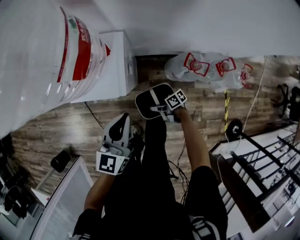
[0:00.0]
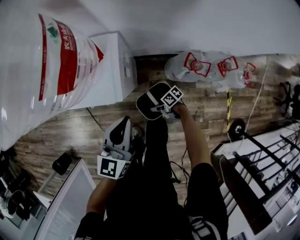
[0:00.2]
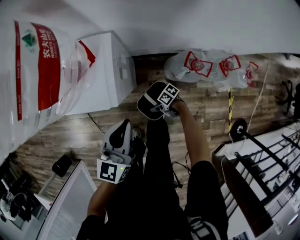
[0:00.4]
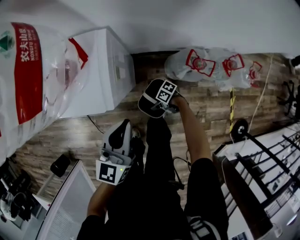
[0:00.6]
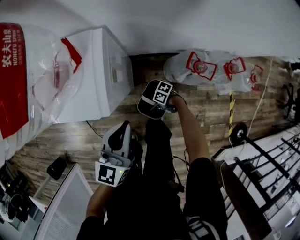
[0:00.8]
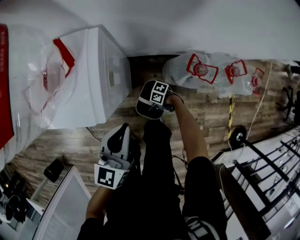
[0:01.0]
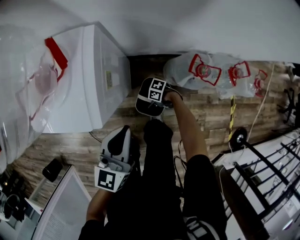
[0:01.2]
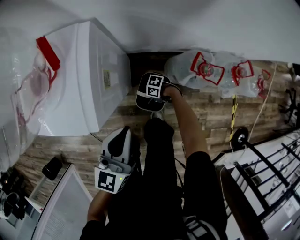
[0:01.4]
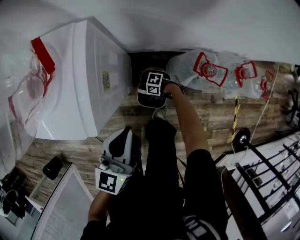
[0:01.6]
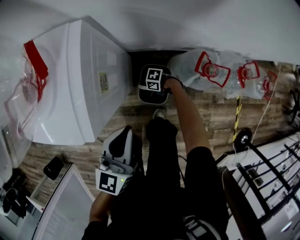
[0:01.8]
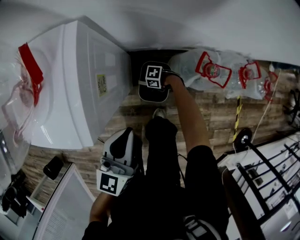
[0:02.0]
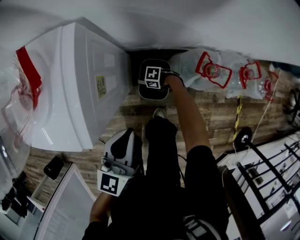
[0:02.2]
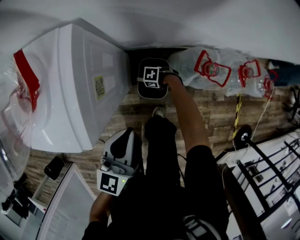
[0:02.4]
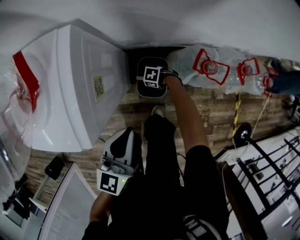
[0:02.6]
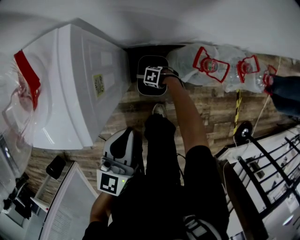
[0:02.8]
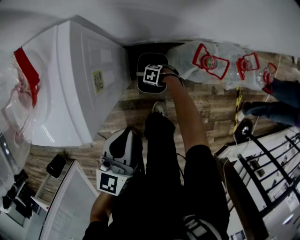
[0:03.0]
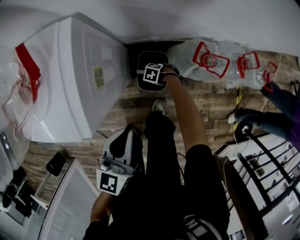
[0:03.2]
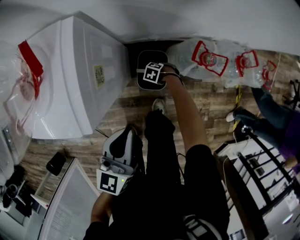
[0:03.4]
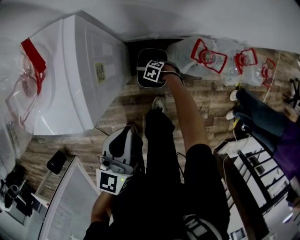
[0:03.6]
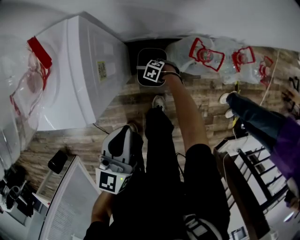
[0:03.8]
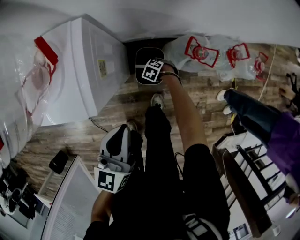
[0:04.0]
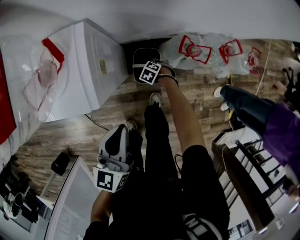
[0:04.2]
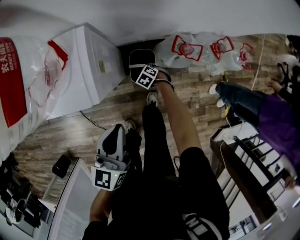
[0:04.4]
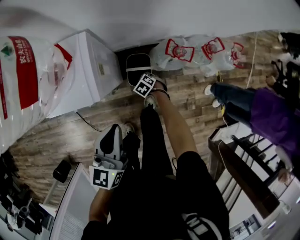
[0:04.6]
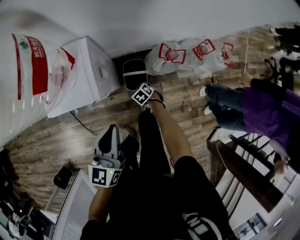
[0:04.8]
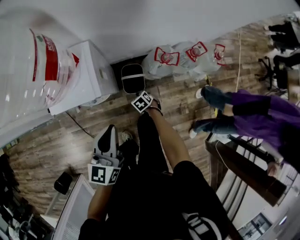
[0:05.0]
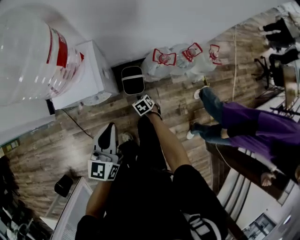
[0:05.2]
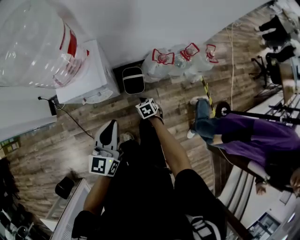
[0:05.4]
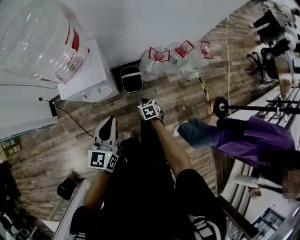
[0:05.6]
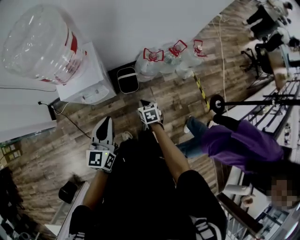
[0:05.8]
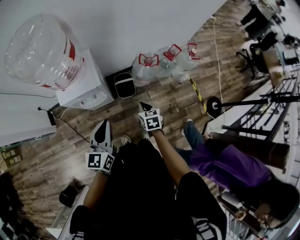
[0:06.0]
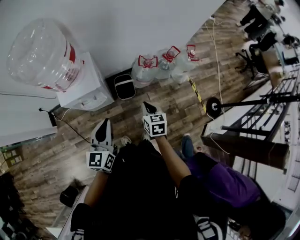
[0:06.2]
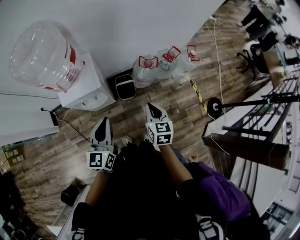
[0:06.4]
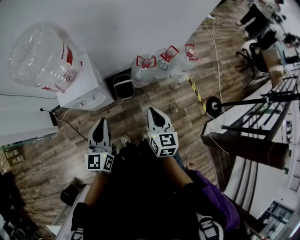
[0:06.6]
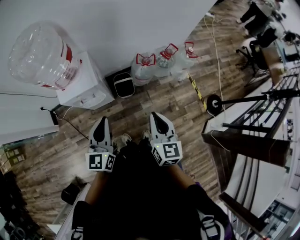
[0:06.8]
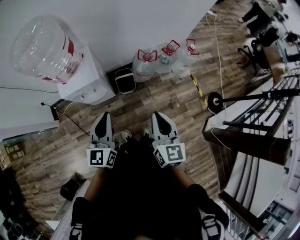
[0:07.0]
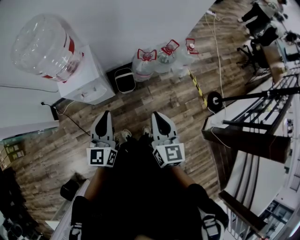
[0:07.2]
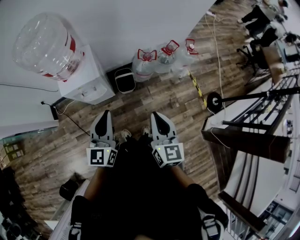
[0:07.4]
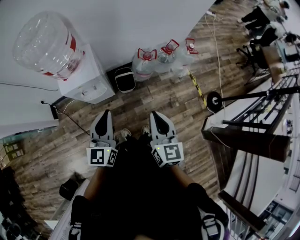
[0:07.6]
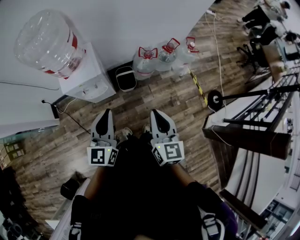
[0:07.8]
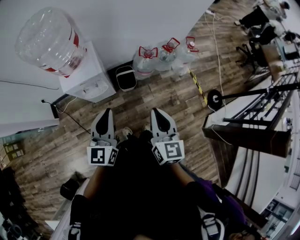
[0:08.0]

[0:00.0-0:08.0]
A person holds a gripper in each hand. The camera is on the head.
0:00.0 to 0:01.6: The left gripper goes about 20 cm downward.
0:03.2 to 0:04.8: The left gripper is displaced upward by approximately 20 cm.
0:04.8 to 0:06.4: The left gripper travels upward by approximately 15 cm.
0:06.4 to 0:08.0: The left gripper moves about 5 cm.

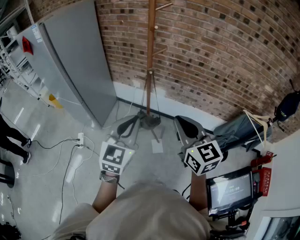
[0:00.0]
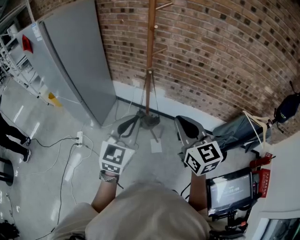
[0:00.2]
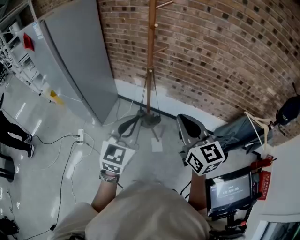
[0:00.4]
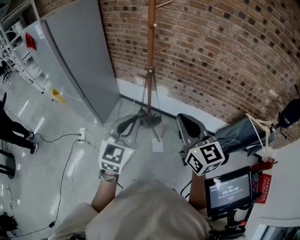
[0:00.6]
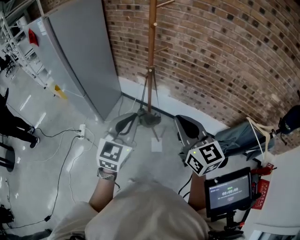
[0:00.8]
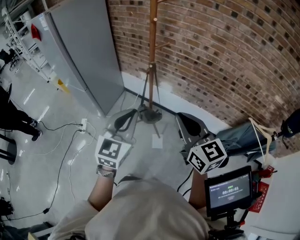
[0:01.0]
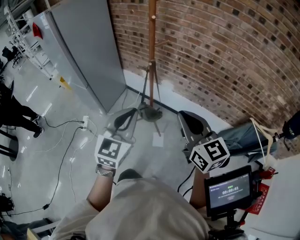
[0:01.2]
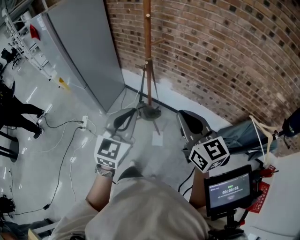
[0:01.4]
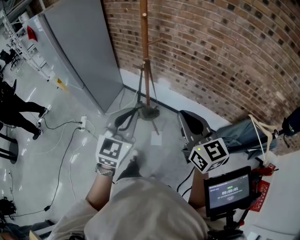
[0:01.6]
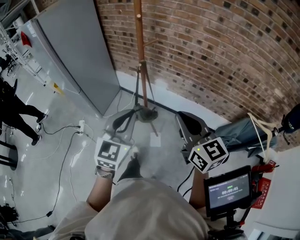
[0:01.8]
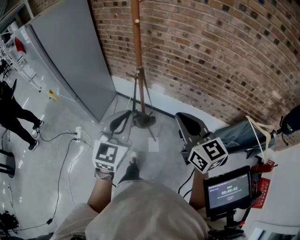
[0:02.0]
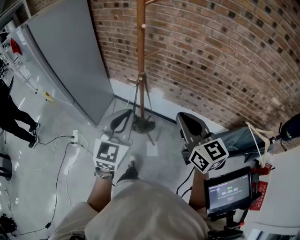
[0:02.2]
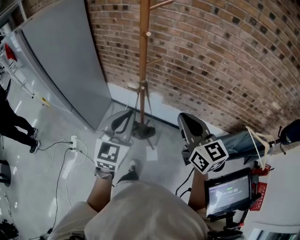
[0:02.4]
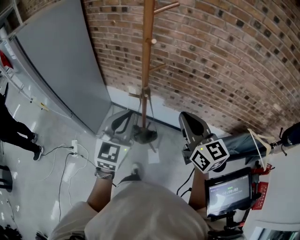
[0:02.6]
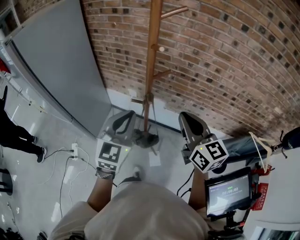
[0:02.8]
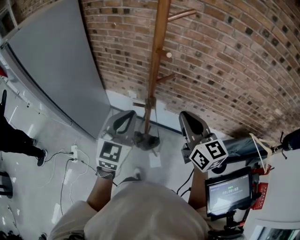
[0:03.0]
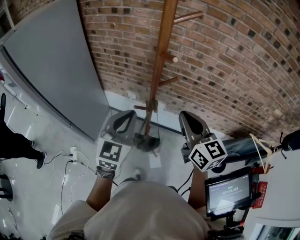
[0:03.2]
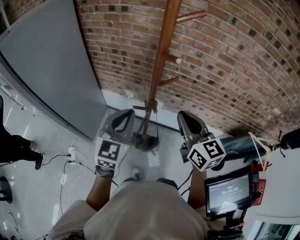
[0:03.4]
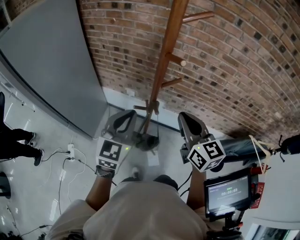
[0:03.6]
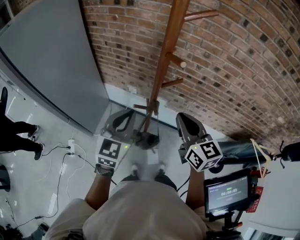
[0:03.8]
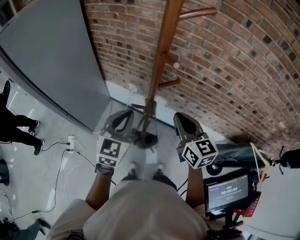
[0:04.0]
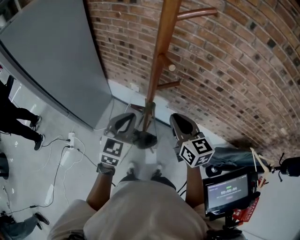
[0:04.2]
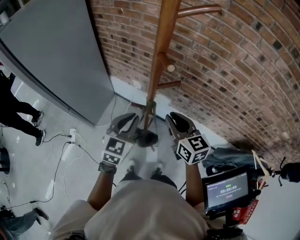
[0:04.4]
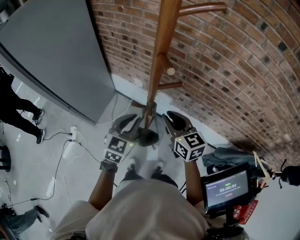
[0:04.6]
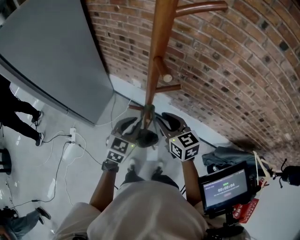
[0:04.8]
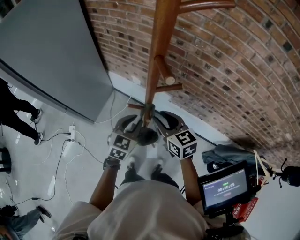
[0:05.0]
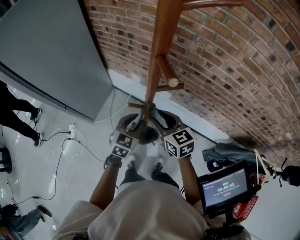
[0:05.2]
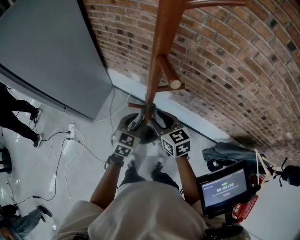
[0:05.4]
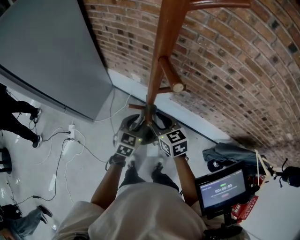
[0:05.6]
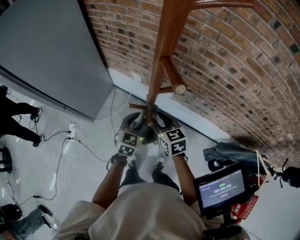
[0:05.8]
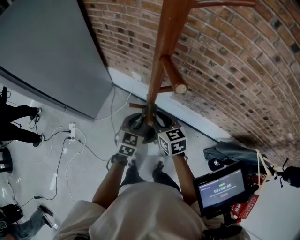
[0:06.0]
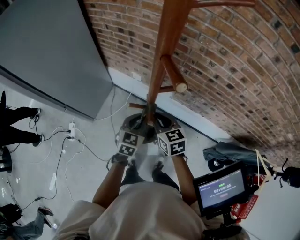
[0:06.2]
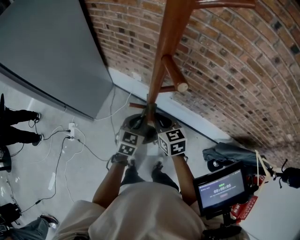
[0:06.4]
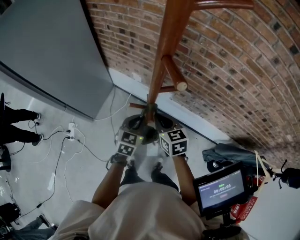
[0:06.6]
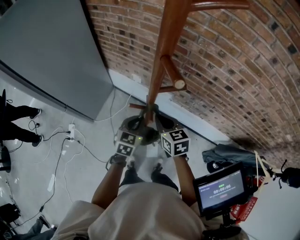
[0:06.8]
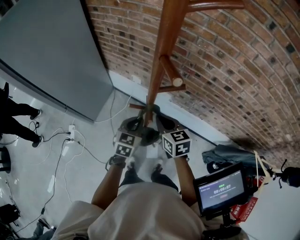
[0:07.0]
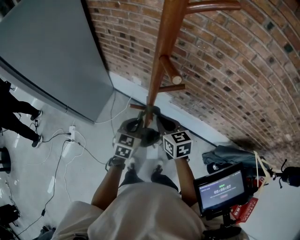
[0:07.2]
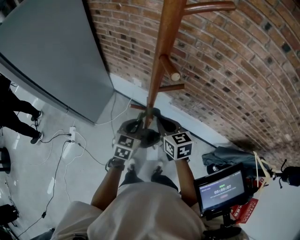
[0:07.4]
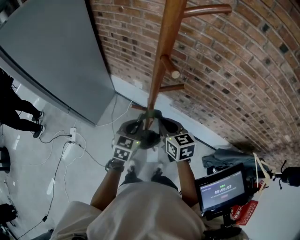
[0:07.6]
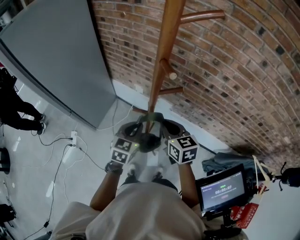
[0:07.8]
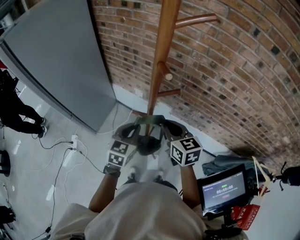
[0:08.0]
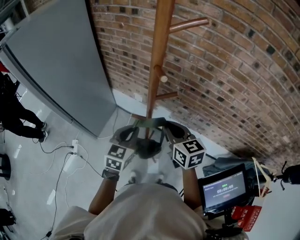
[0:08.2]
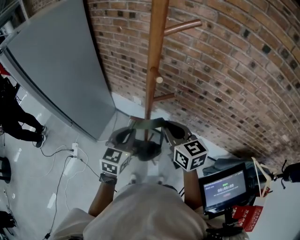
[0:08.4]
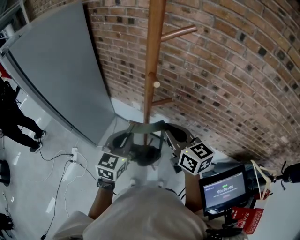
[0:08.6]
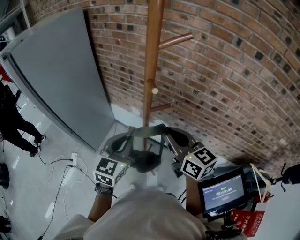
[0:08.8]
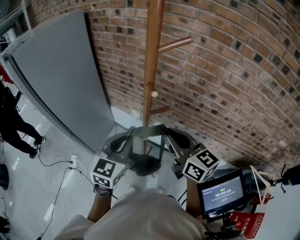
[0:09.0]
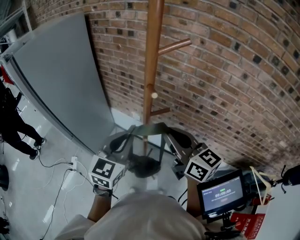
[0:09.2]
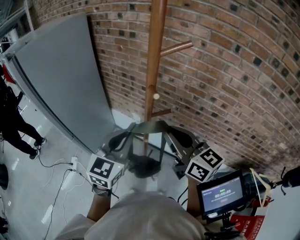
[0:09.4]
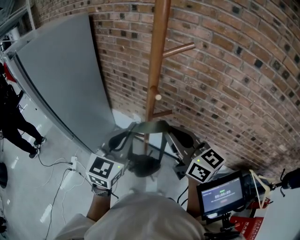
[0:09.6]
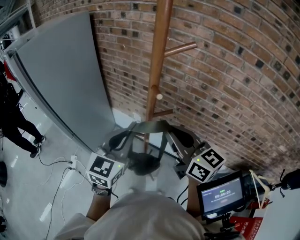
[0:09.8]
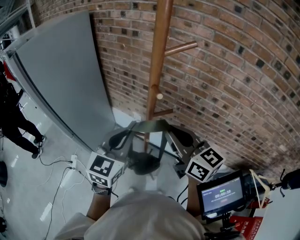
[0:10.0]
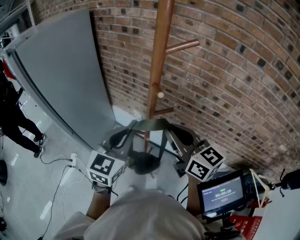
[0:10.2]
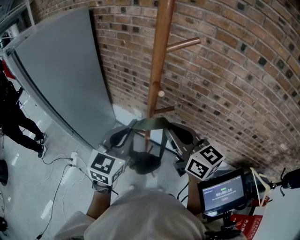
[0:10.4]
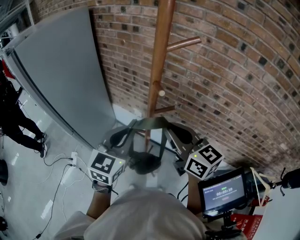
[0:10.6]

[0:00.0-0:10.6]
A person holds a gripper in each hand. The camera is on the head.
0:00.0 to 0:01.6: The two grippers go about 10 cm to the right.
0:01.6 to 0:03.0: The grippers both shift forward by roughly 25 cm.
0:03.0 to 0:04.6: The grippers both shift downward and forward by about 15 cm. The right gripper turns by some 20 degrees.
0:04.6 to 0:06.0: The two grippers go about 10 cm downward.
0:06.0 to 0:07.6: The right gripper changes place by some 5 cm, and closes up.
0:07.6 to 0:09.0: Both grippers travel together upward, about 20 cm. The right gripper changes its angle by approximately 30 degrees.
0:09.0 to 0:10.6: The grippers make only small movements.

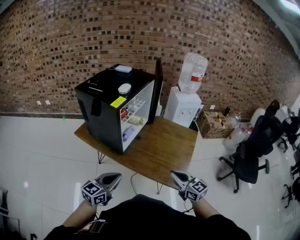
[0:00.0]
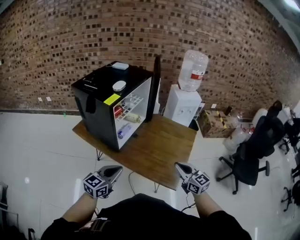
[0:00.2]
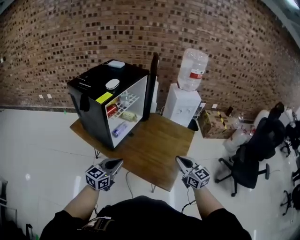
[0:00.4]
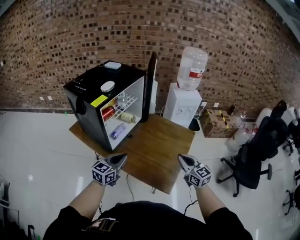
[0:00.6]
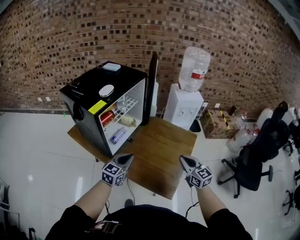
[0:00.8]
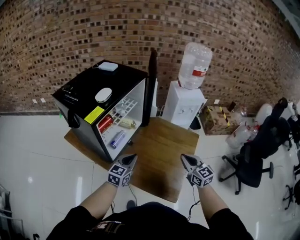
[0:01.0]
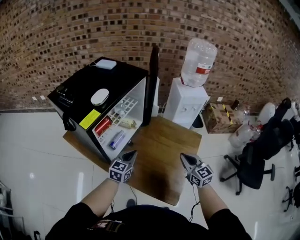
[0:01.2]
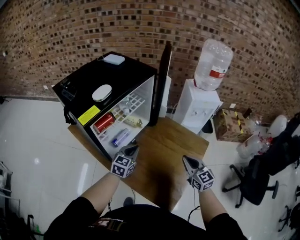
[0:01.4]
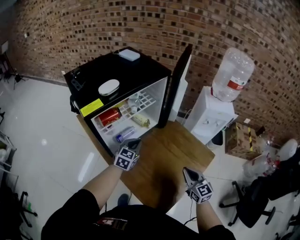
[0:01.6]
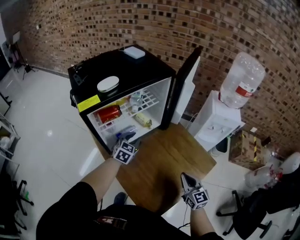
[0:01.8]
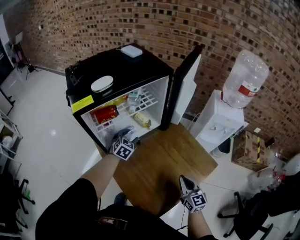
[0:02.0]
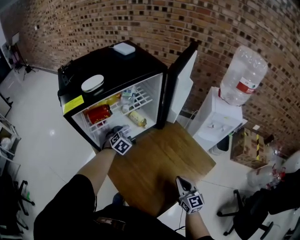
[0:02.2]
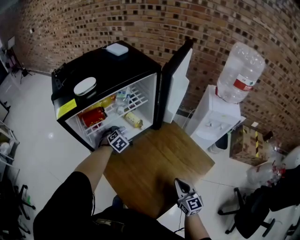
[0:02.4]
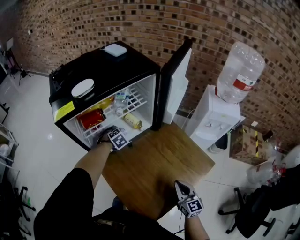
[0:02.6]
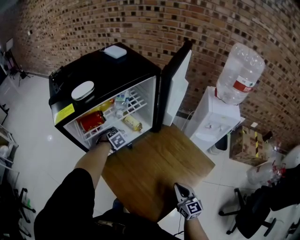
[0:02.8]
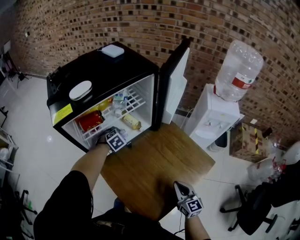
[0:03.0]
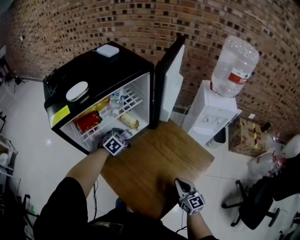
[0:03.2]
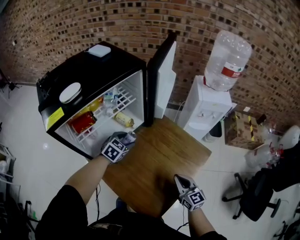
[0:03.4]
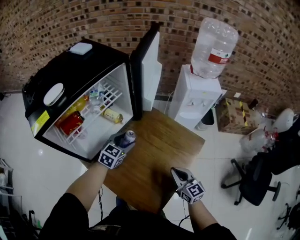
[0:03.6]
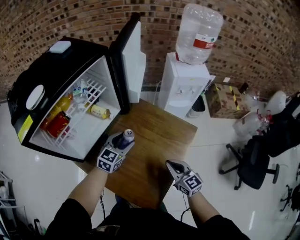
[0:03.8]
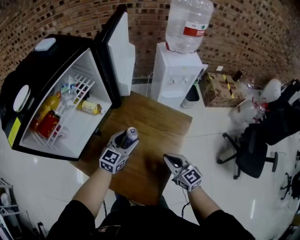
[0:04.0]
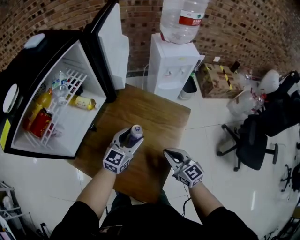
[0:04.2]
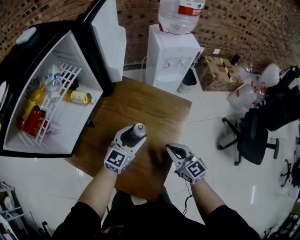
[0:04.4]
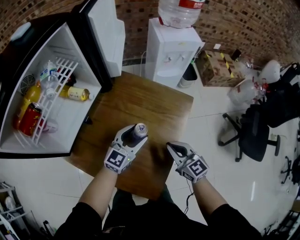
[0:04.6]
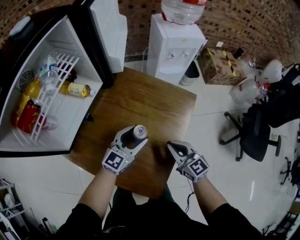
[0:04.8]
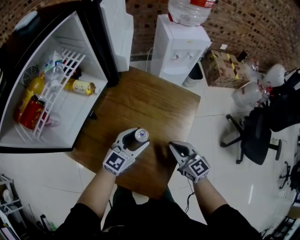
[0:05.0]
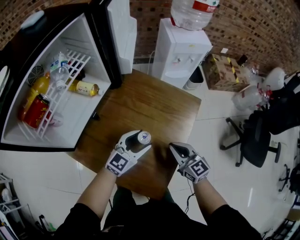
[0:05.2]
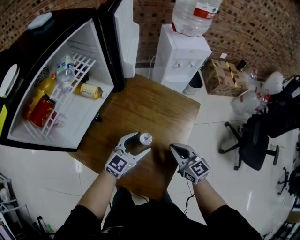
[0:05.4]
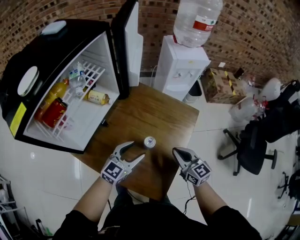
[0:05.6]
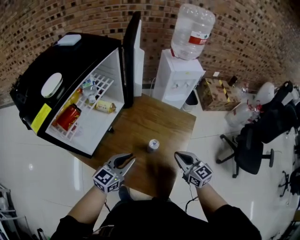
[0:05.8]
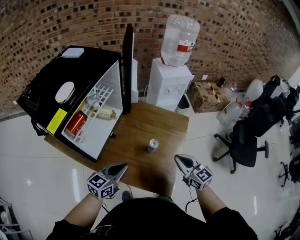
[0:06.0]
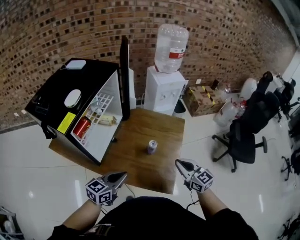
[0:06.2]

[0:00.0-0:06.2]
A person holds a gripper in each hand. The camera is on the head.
0:00.0 to 0:01.6: Both grippers travel together forward and to the right, some 40 cm. The left gripper changes its angle by about 40 degrees.
0:01.6 to 0:03.2: The left gripper is displaced downward and forward by some 15 cm, swivels roughly 30 degrees, and opens; the right gripper shifts about 10 cm downward.
0:03.2 to 0:04.6: The left gripper moves to the right and backward, about 30 cm, and tips its fingers upward by some 40 degrees. Meanwhile the right gripper shifts by about 5 cm.
0:04.6 to 0:06.2: The right gripper moves upward and backward, about 25 cm; the left gripper goes roughly 35 cm backward, to the left and upward, turns by some 20 degrees, and closes its fingers.
